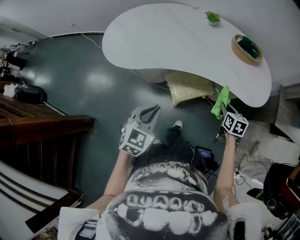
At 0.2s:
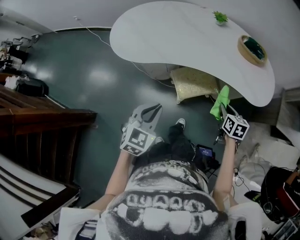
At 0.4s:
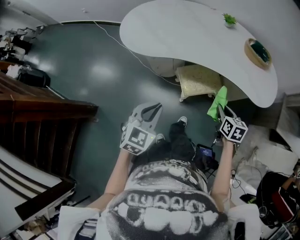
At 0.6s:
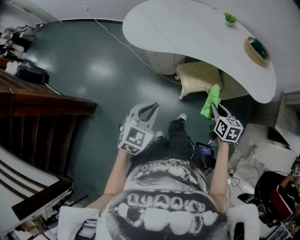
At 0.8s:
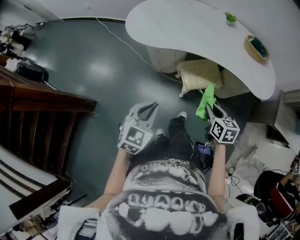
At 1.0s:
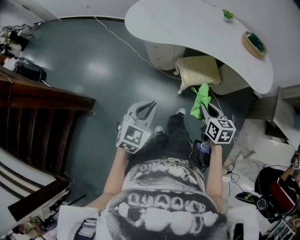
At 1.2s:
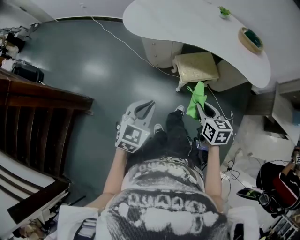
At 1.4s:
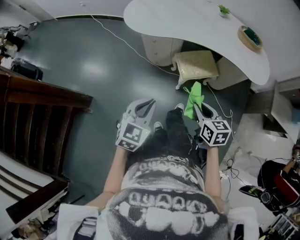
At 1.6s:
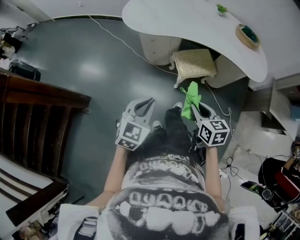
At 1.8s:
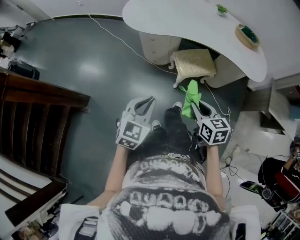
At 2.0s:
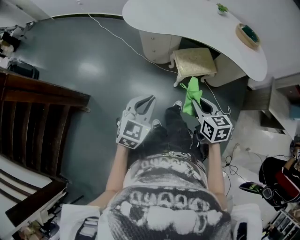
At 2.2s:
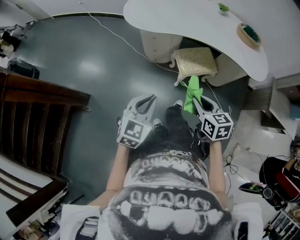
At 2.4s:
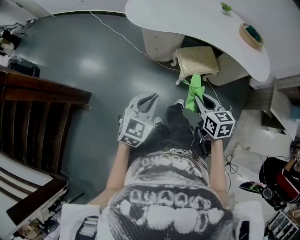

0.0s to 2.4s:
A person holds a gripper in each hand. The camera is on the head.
0.0s to 1.2s: The right gripper shifts about 35 cm to the left, backward and upward, and turns by some 20 degrees. The left gripper heads backward and to the left, covering roughly 25 cm.
1.2s to 2.4s: There are only small adjustments of the grippers.

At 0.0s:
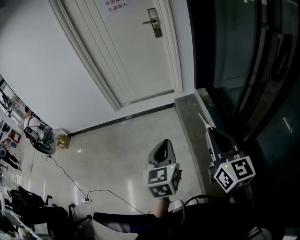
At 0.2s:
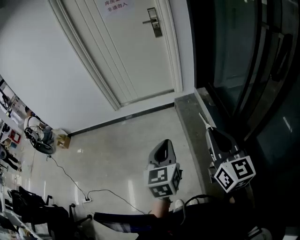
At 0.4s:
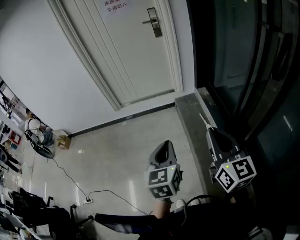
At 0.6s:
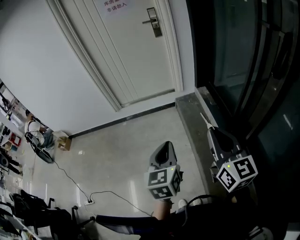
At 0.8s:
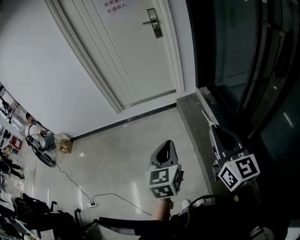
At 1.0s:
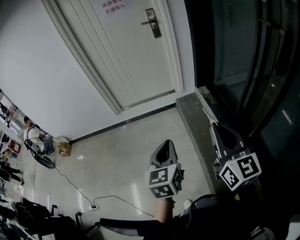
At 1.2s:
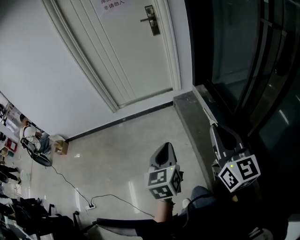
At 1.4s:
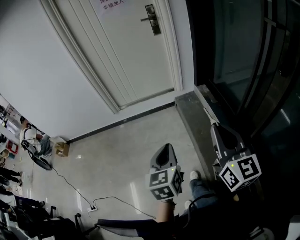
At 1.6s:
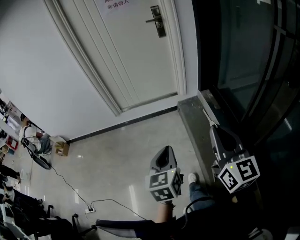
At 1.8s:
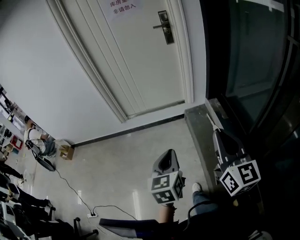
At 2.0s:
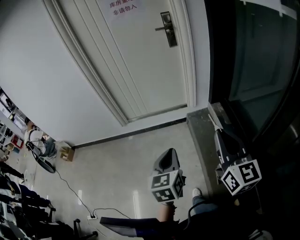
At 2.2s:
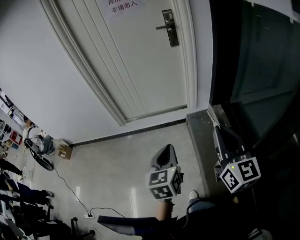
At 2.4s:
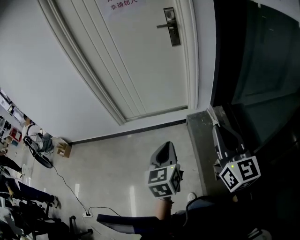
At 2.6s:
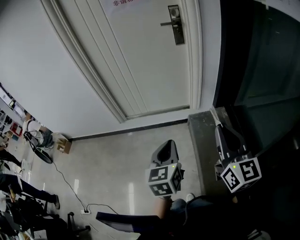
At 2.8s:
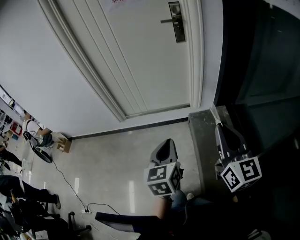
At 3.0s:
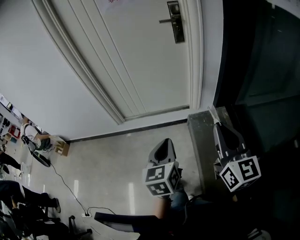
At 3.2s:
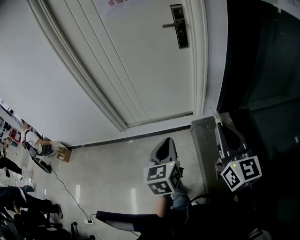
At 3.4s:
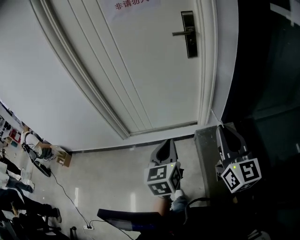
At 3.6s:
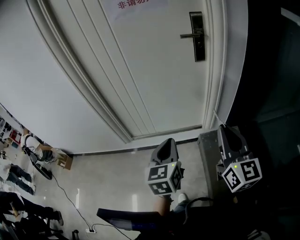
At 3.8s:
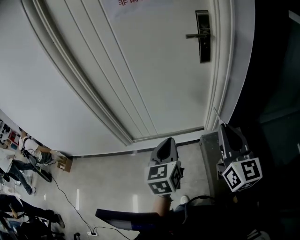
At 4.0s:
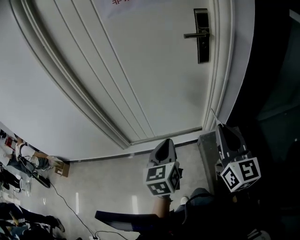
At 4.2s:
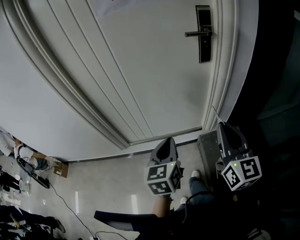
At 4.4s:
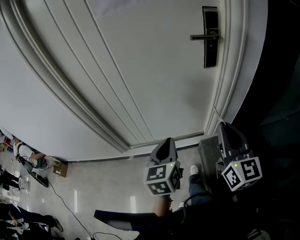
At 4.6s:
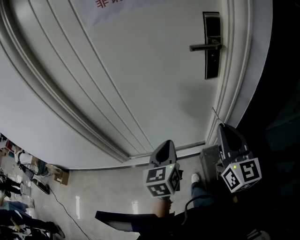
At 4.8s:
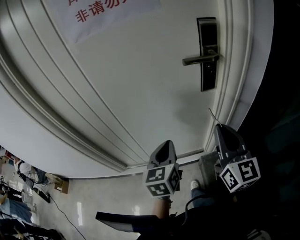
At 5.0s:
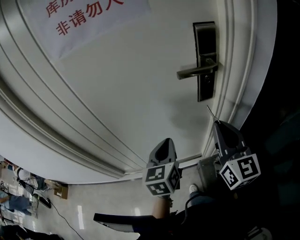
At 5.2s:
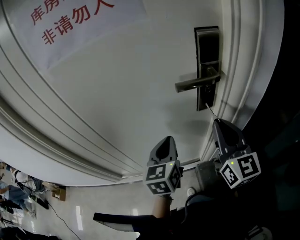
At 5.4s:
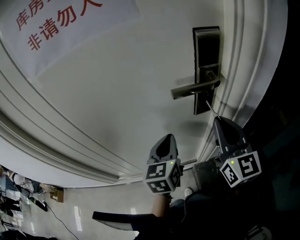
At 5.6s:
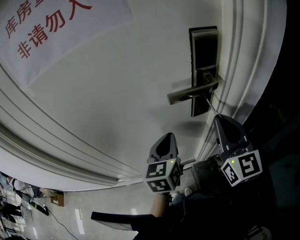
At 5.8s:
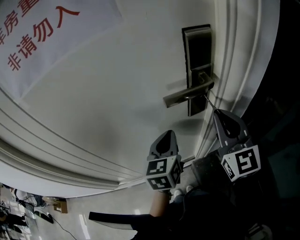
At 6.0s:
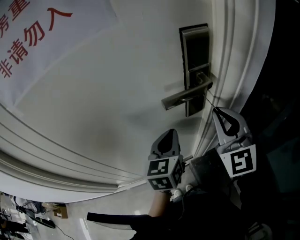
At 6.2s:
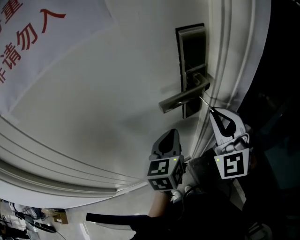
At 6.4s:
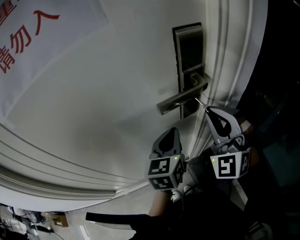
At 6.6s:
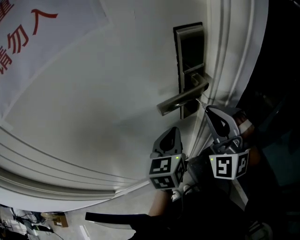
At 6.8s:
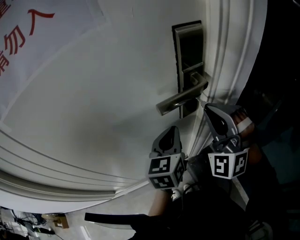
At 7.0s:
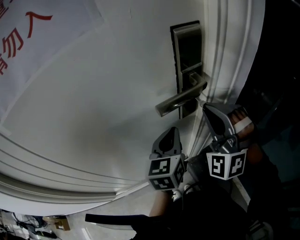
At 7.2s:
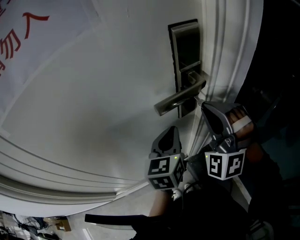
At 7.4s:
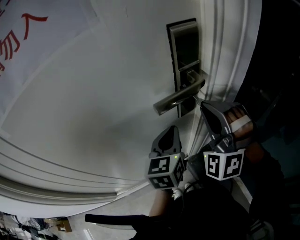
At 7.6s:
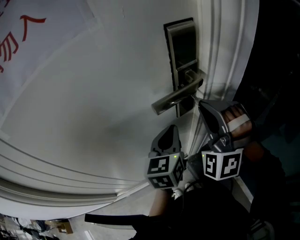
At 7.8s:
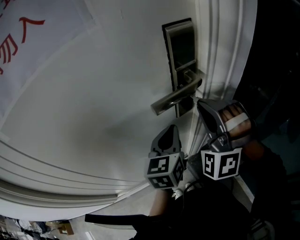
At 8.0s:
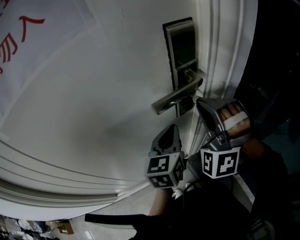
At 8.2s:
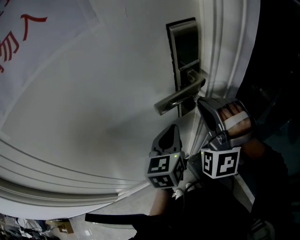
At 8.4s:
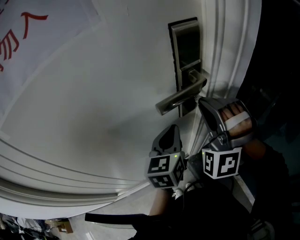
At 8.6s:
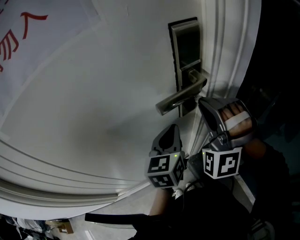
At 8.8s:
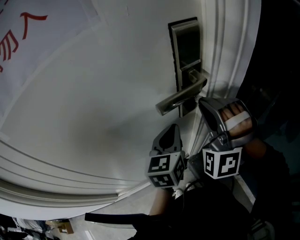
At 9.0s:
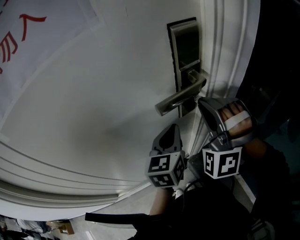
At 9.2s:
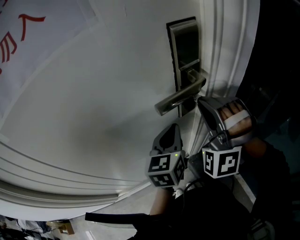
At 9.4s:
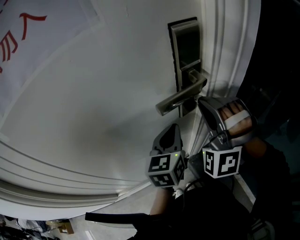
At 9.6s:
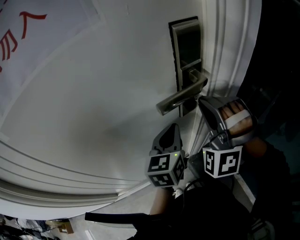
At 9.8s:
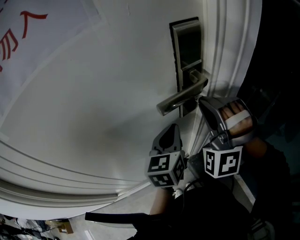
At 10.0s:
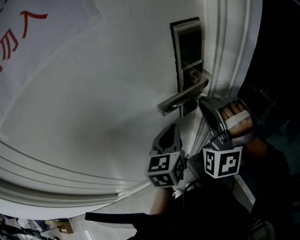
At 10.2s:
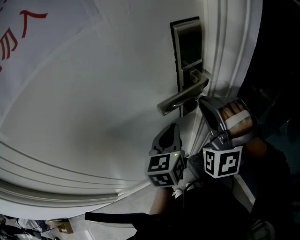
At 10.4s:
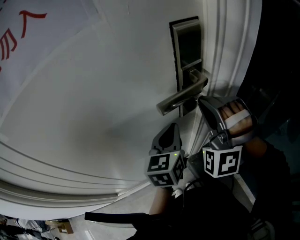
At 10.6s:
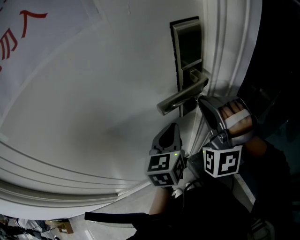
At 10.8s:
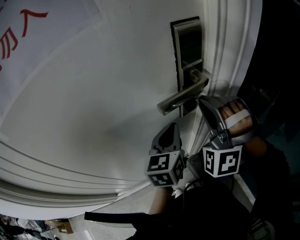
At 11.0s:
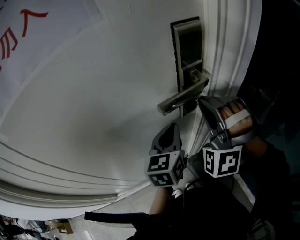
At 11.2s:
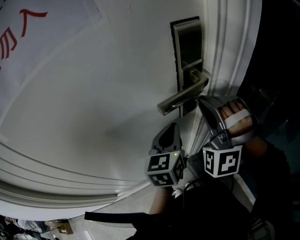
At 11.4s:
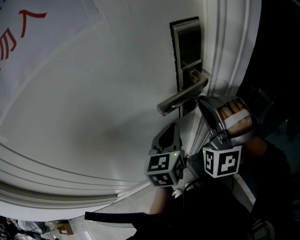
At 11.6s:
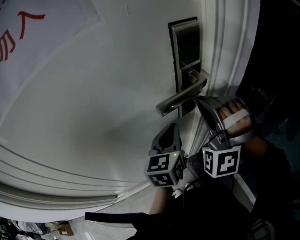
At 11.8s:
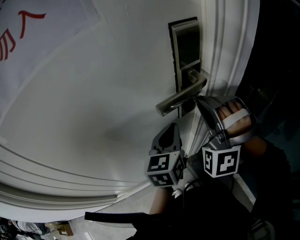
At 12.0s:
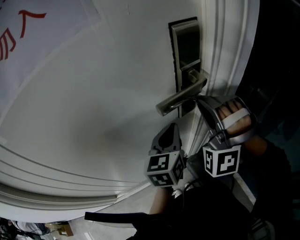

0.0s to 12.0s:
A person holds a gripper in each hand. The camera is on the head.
0.0s to 1.6s: The left gripper ends up about 15 cm from where it was.
1.6s to 3.0s: The left gripper changes place by about 30 cm.
3.0s to 4.4s: The left gripper moves approximately 35 cm.
4.4s to 6.0s: The left gripper ends up roughly 35 cm from where it was.

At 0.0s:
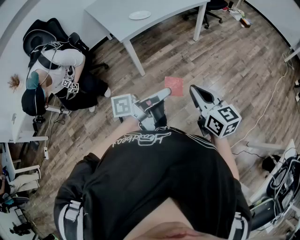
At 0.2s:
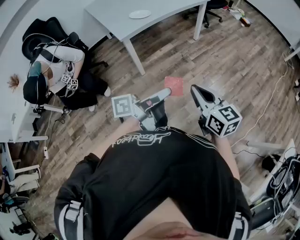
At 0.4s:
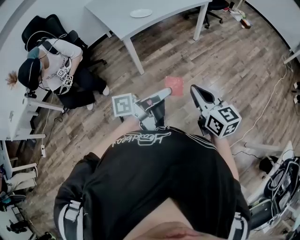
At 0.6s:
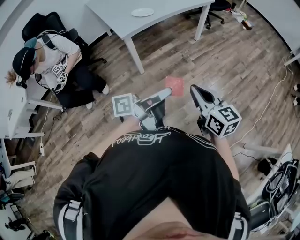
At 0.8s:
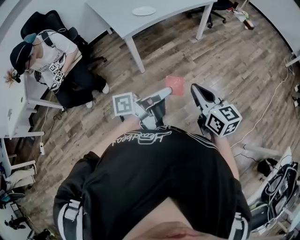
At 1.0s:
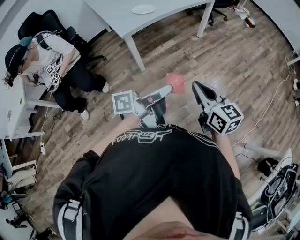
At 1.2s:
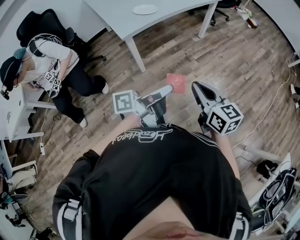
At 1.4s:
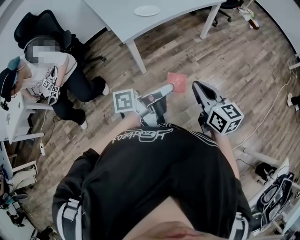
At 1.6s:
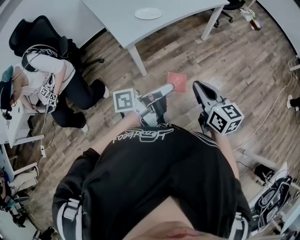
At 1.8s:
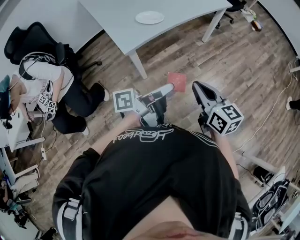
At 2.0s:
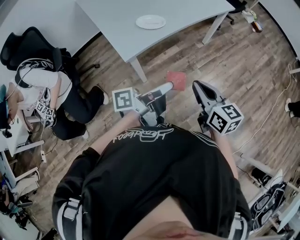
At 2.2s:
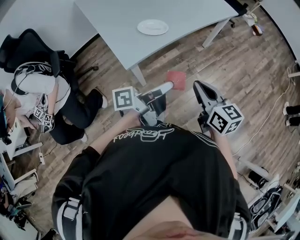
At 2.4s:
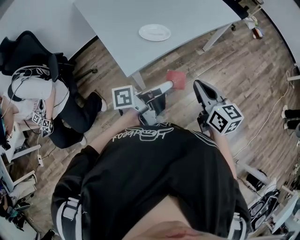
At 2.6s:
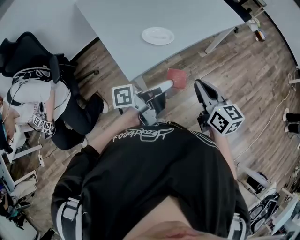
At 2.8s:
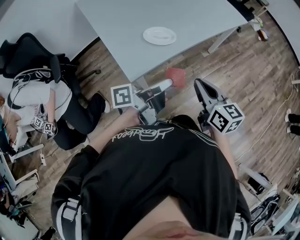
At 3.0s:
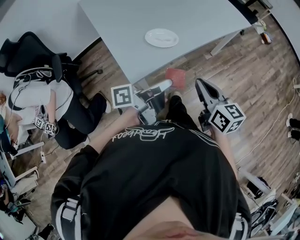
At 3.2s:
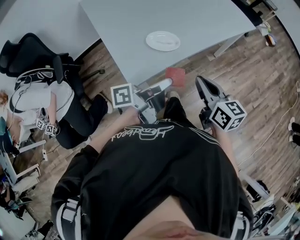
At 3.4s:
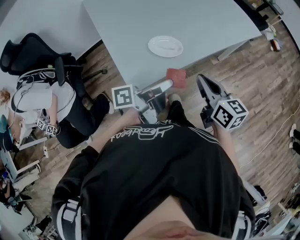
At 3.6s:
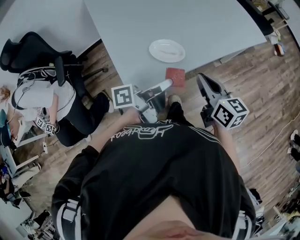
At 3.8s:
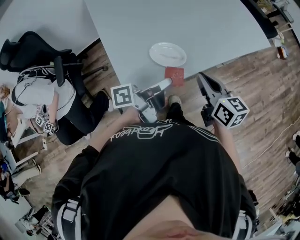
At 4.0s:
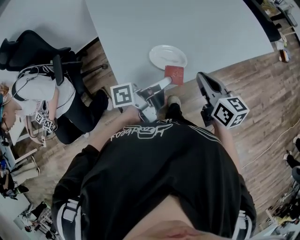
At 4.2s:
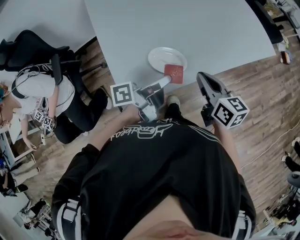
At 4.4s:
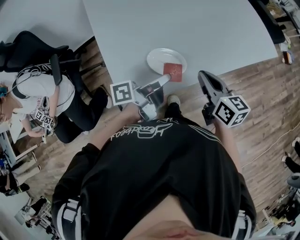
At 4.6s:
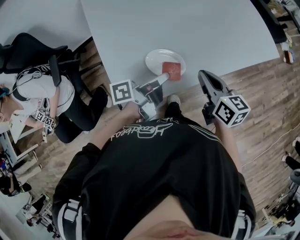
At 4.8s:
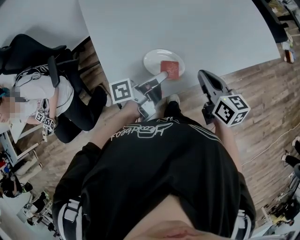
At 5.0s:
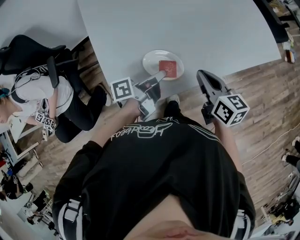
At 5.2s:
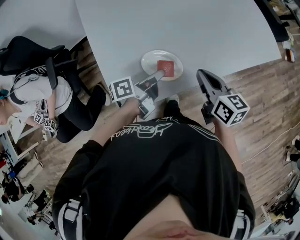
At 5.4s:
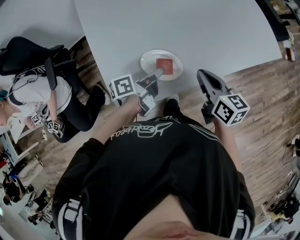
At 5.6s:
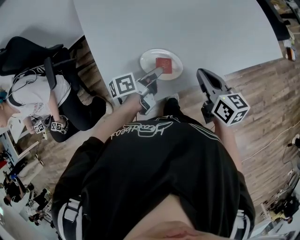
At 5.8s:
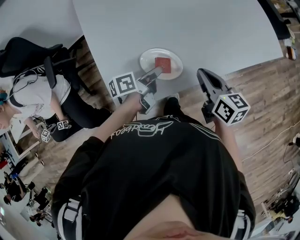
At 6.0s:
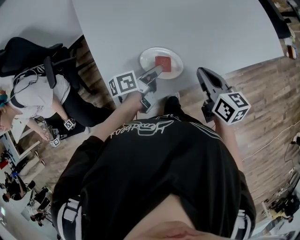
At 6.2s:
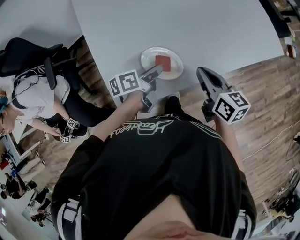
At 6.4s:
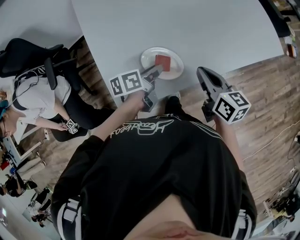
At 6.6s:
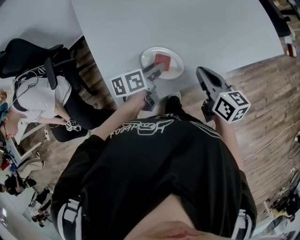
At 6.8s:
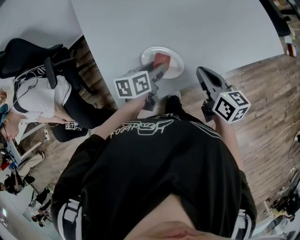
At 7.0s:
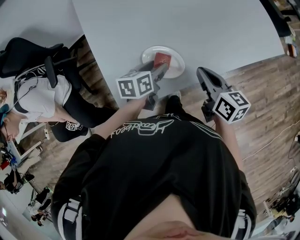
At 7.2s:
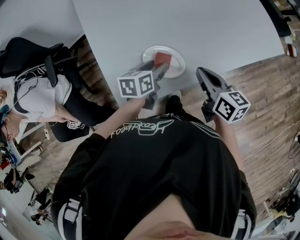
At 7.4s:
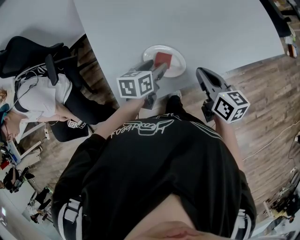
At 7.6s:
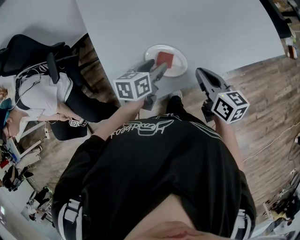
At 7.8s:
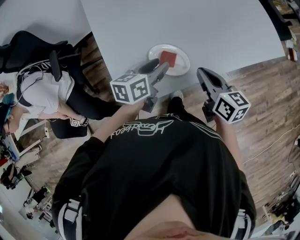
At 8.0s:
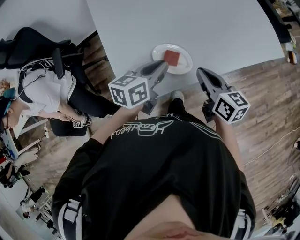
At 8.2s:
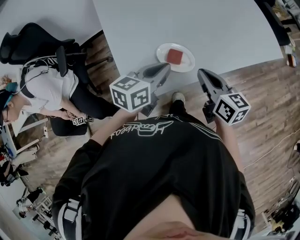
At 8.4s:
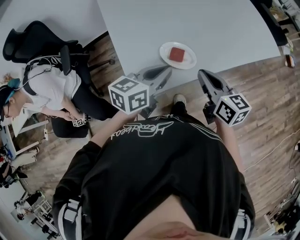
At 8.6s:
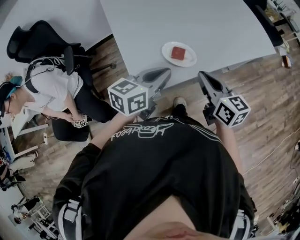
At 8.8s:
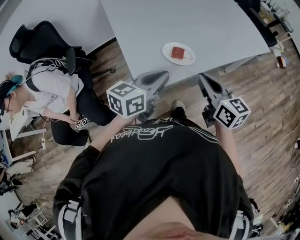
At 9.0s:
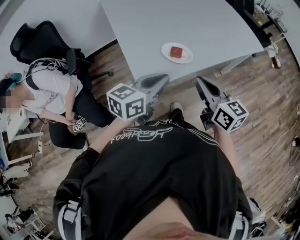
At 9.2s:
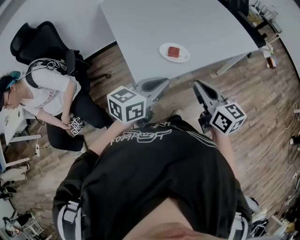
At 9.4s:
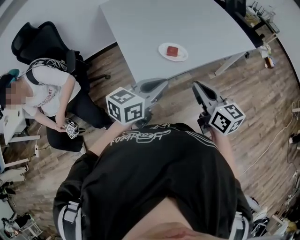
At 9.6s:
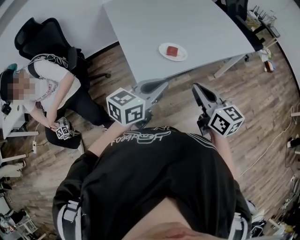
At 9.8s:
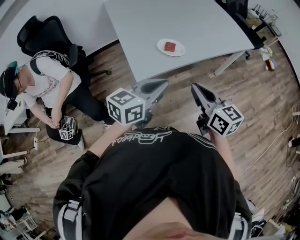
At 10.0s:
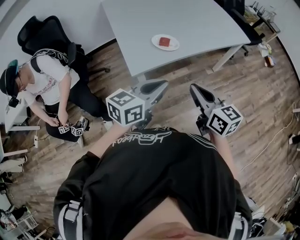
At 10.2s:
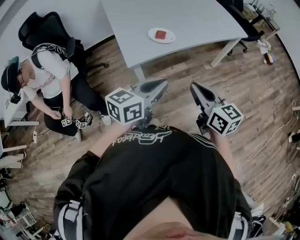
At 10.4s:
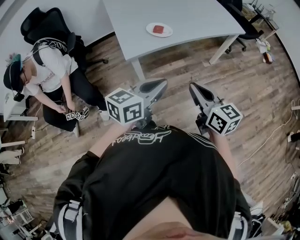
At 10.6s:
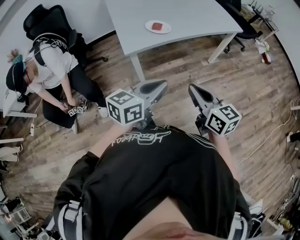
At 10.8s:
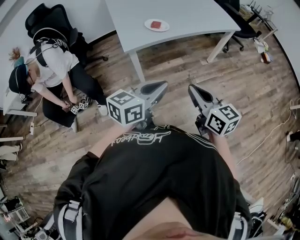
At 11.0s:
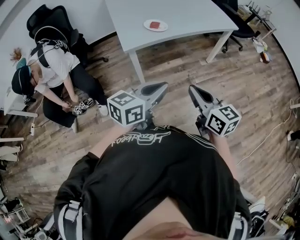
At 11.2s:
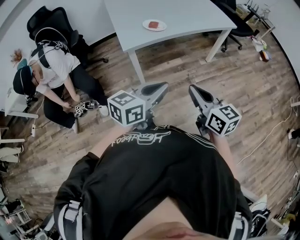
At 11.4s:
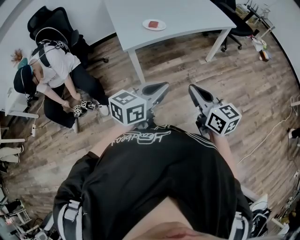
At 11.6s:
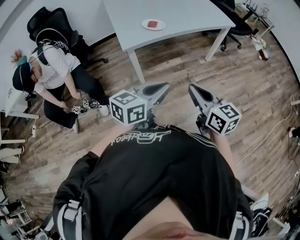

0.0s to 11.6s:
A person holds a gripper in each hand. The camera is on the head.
0.0s to 1.4s: The two grippers go some 15 cm forward and to the left.
1.4s to 2.8s: The grippers both shift forward and to the left by approximately 30 cm.
2.8s to 4.4s: The two grippers go about 20 cm forward.
4.4s to 5.8s: The left gripper goes about 10 cm downward, and turns by some 20 degrees.
5.8s to 7.2s: The left gripper swivels roughly 40 degrees, and opens.
7.2s to 8.8s: The left gripper travels upward and backward by approximately 25 cm, turns by some 30 degrees, and closes up. The right gripper goes approximately 20 cm backward, upward and to the left.
8.8s to 10.2s: The grippers both shift backward and to the right by about 25 cm.
10.2s to 11.6s: Both grippers move backward and to the right, about 15 cm.
